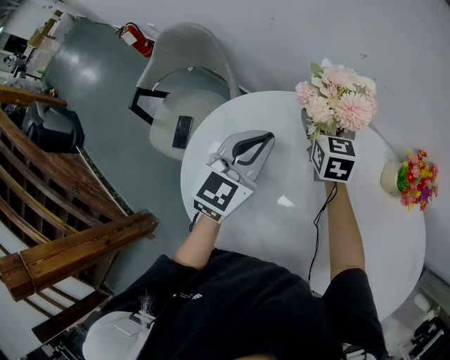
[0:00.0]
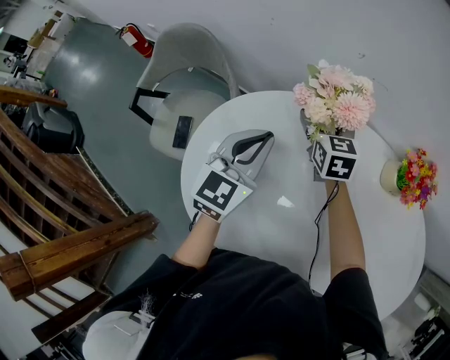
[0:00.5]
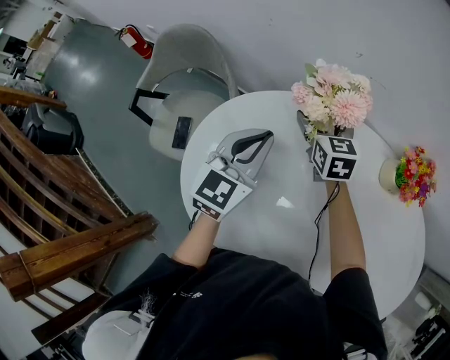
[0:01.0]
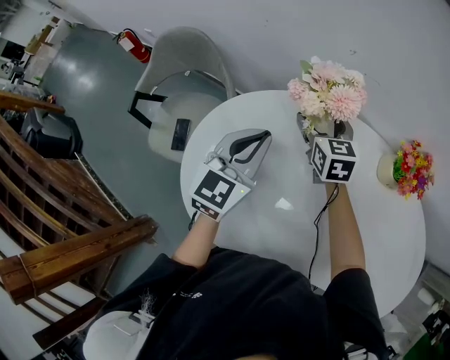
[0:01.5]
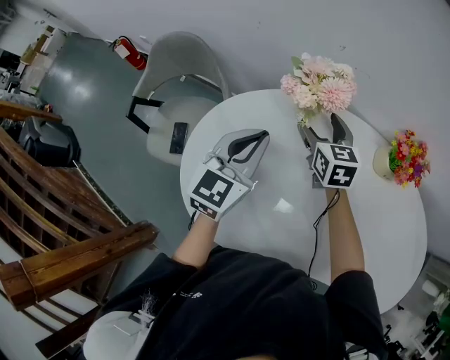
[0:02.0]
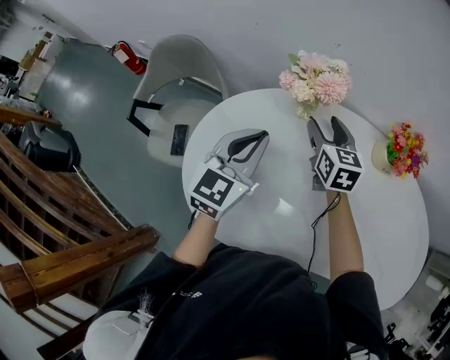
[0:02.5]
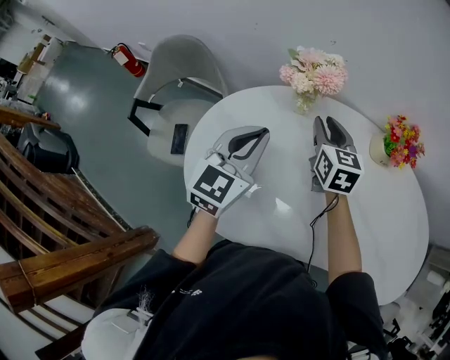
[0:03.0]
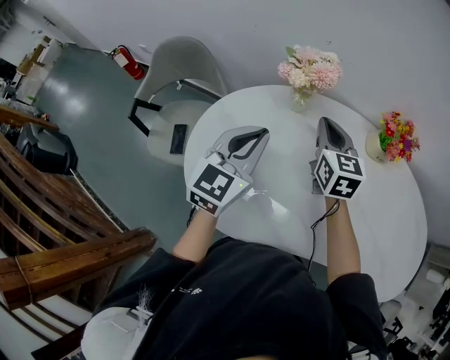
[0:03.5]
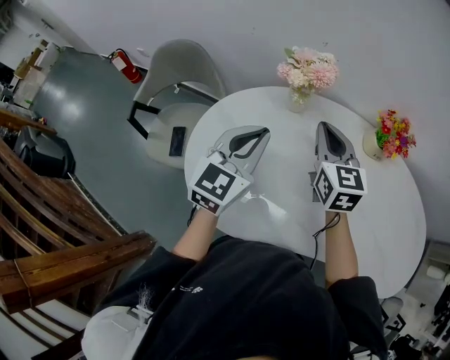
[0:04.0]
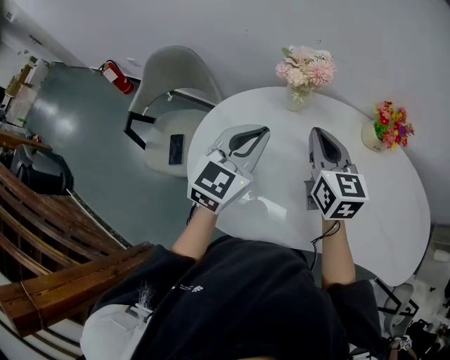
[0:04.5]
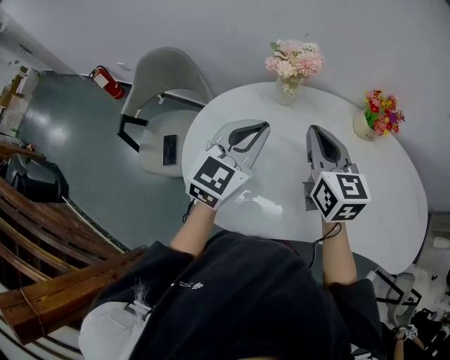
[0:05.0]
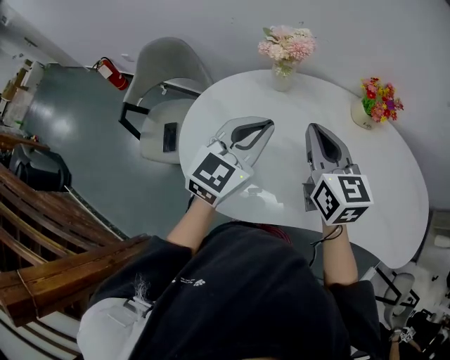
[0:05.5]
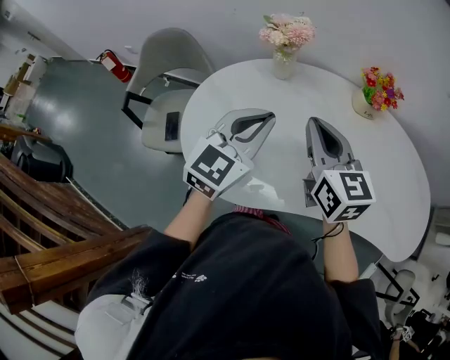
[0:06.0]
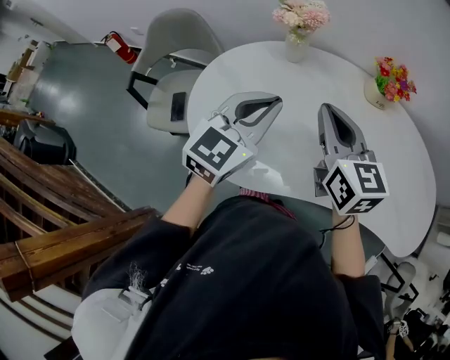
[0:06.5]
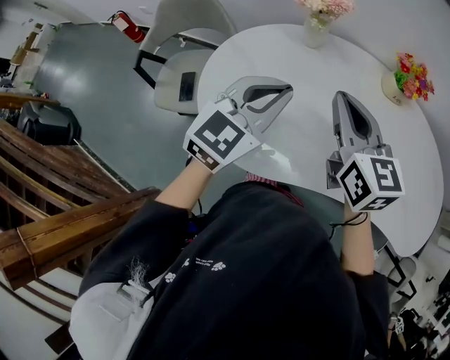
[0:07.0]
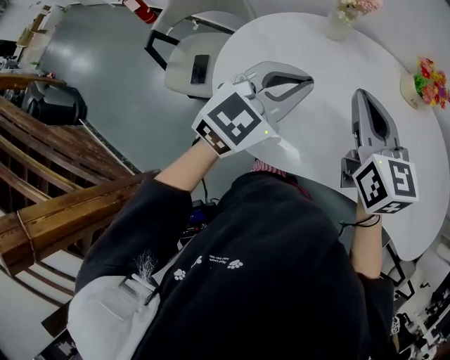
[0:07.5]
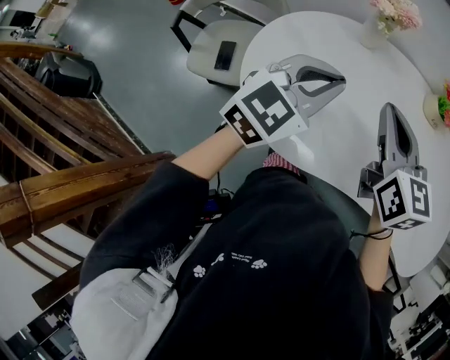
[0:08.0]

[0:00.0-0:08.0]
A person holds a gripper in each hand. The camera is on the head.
0:00.0 to 0:02.0: The right gripper changes place by approximately 5 cm.
0:02.0 to 0:04.0: The left gripper moves backward, roughly 5 cm; the right gripper travels backward and upward by roughly 15 cm, and closes up.
0:04.0 to 0:06.0: The left gripper heads backward and to the right, covering some 10 cm. The right gripper is displaced backward by roughly 15 cm.
0:06.0 to 0:08.0: The grippers stay close to where they were, moving slightly.

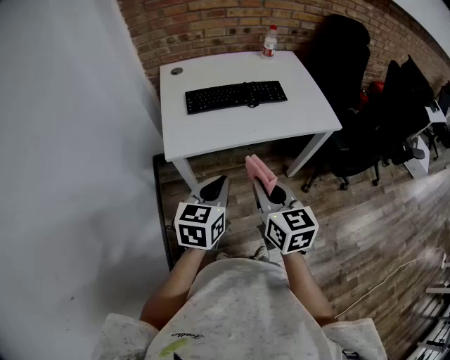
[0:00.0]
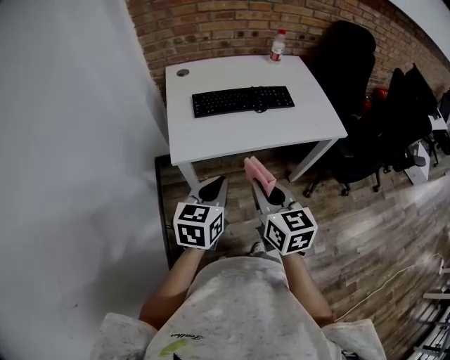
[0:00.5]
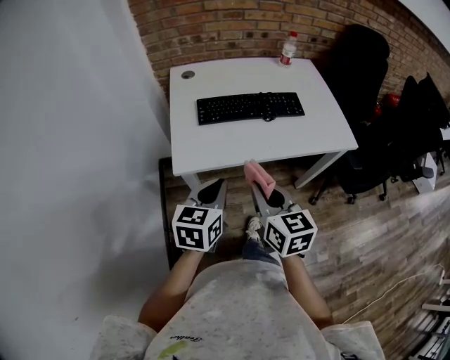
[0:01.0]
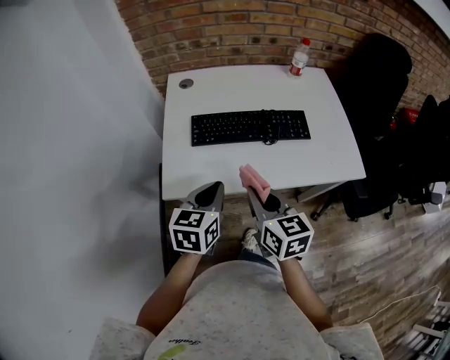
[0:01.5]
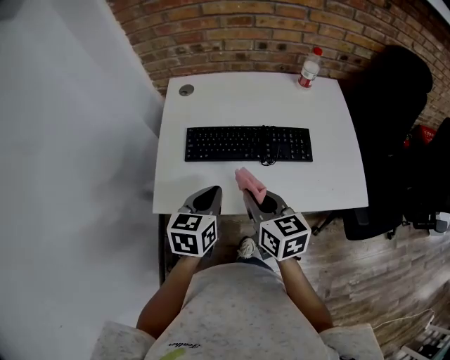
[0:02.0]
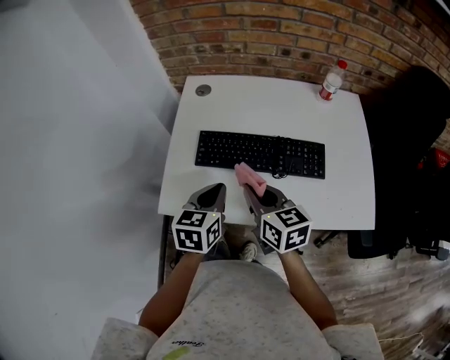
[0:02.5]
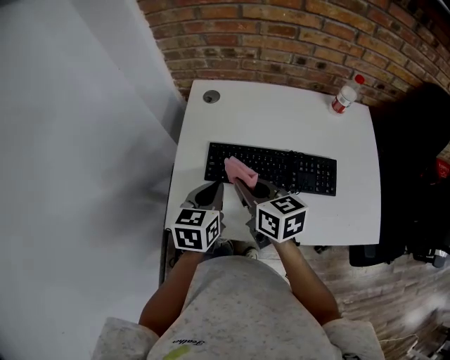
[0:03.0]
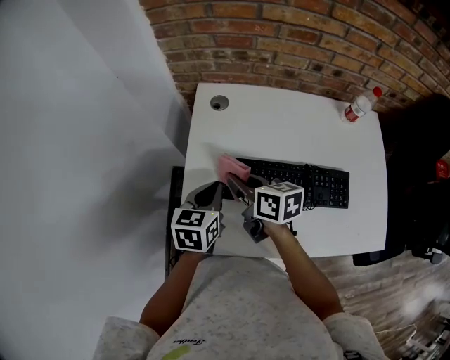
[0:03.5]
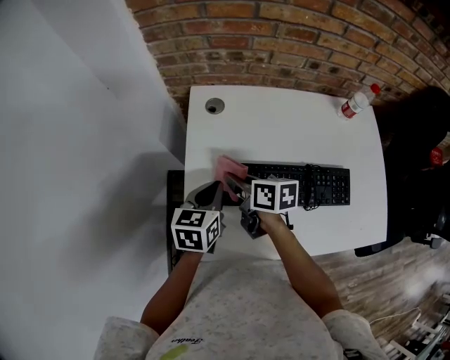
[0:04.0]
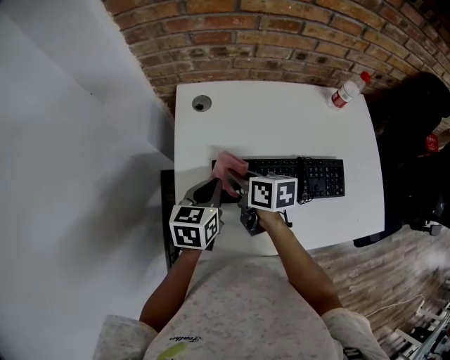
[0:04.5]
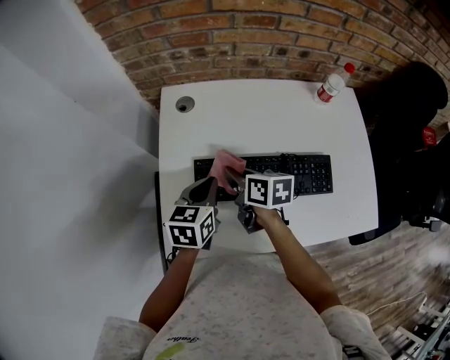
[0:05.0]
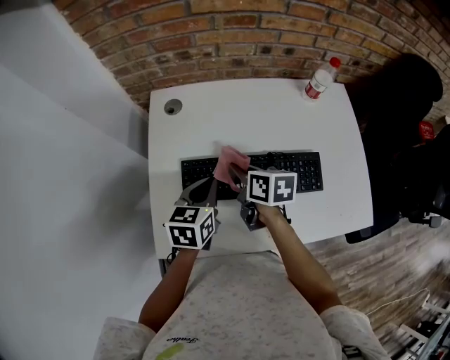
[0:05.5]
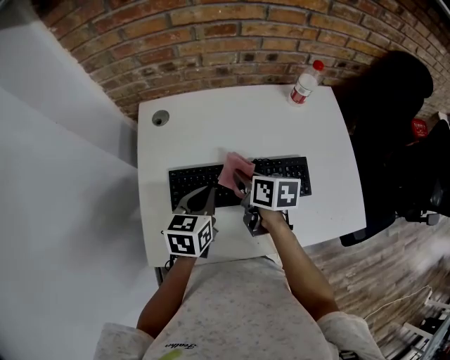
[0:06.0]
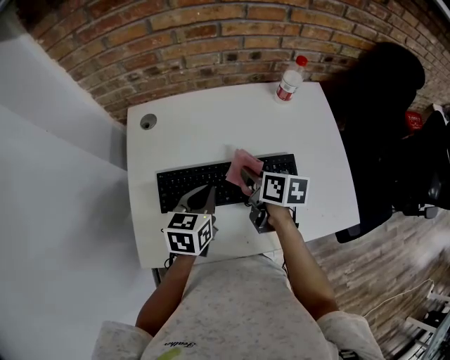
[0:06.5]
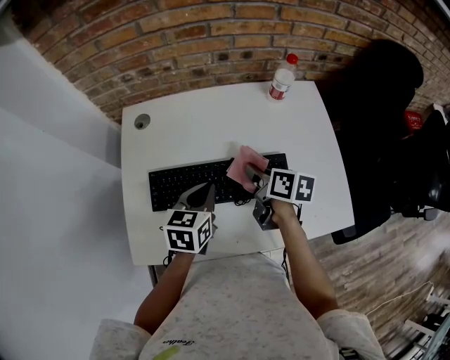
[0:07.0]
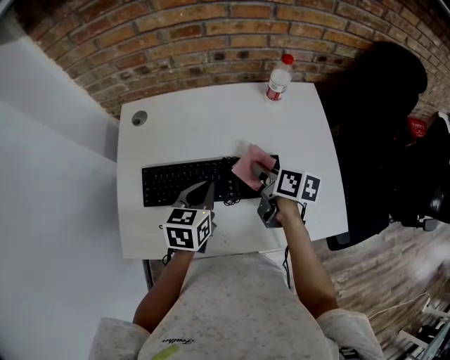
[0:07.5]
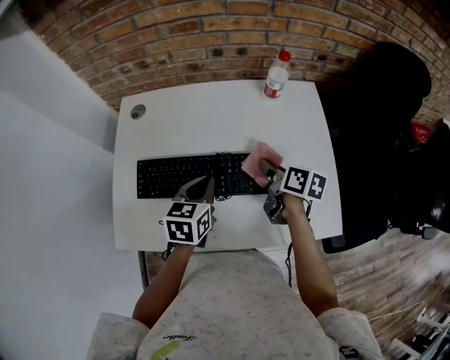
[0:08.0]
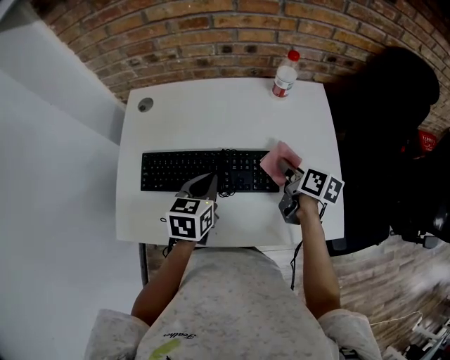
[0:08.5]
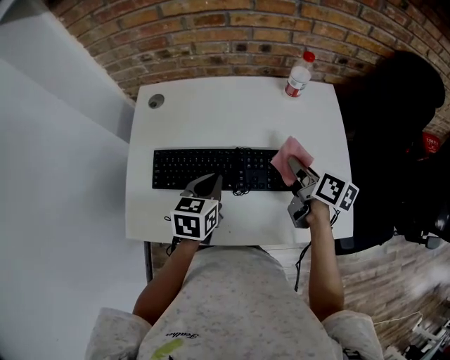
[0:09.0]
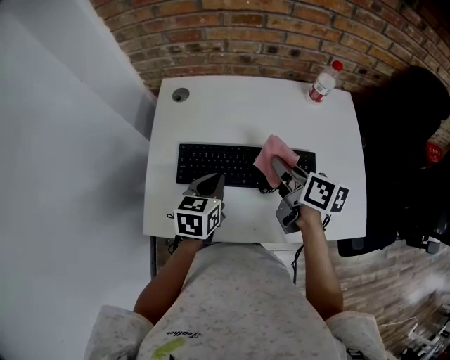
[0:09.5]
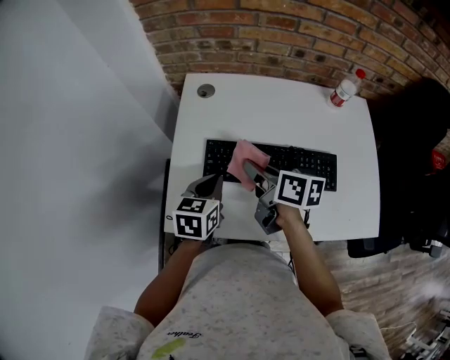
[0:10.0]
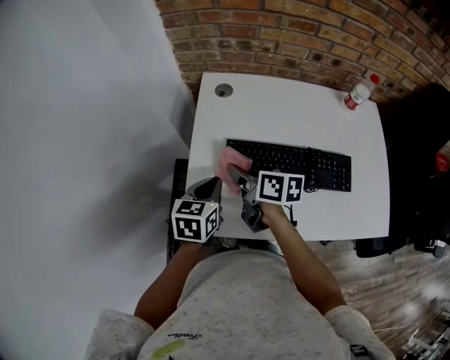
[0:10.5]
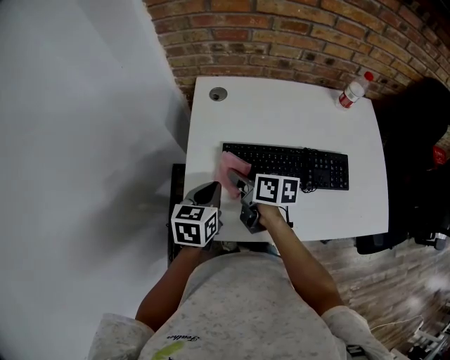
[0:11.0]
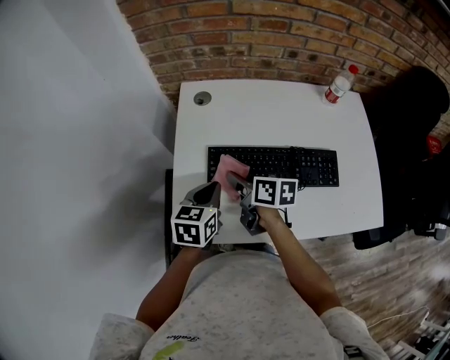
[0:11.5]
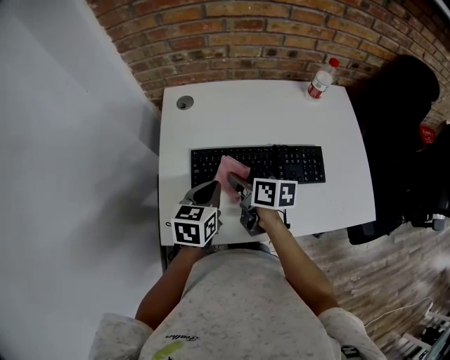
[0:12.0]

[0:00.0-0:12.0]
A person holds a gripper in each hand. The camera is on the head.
0:00.0 to 0:02.0: Both grippers move forward, about 30 cm.
0:02.0 to 0:04.0: The grippers both shift forward and to the left by some 30 cm. The right gripper swivels roughly 30 degrees.
0:04.0 to 0:06.0: Both grippers travel together to the right, approximately 15 cm.
0:06.0 to 0:08.0: The left gripper travels to the right by some 15 cm; the right gripper goes about 20 cm to the right.
0:08.0 to 0:10.0: The grippers both shift to the left by some 25 cm. The right gripper rotates some 20 degrees.
0:10.0 to 0:12.0: The left gripper reaches about 5 cm to the left, then returns, while the right gripper moves downward, some 5 cm, and reaches approximately 10 cm to the left, then returns.

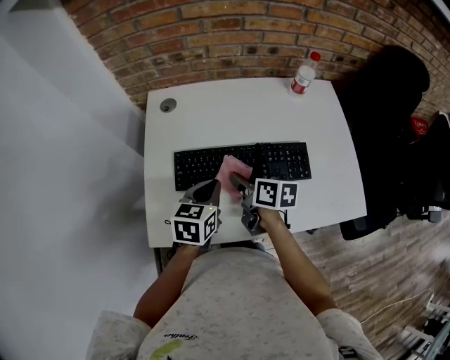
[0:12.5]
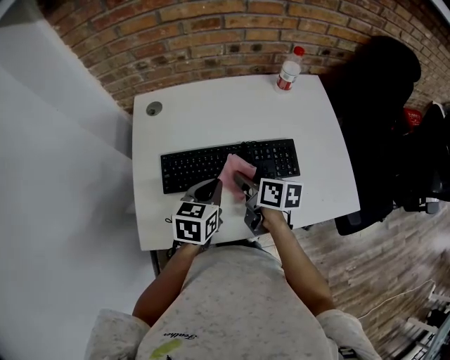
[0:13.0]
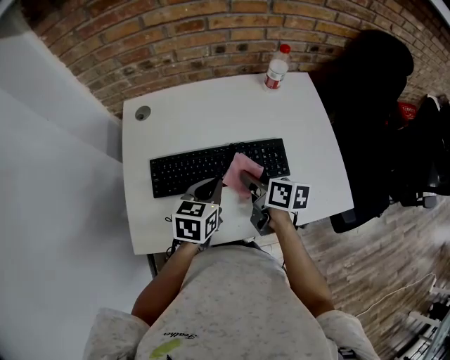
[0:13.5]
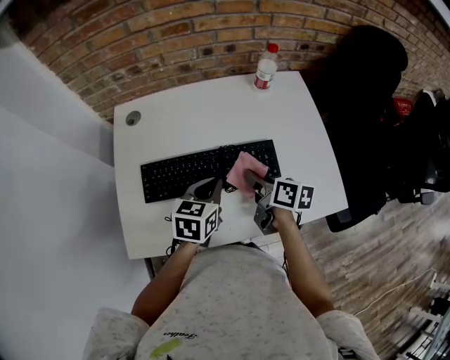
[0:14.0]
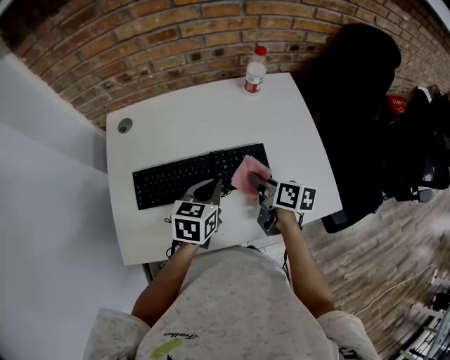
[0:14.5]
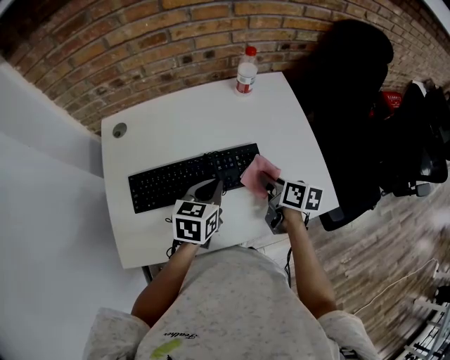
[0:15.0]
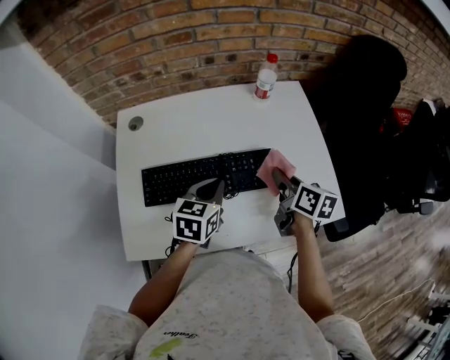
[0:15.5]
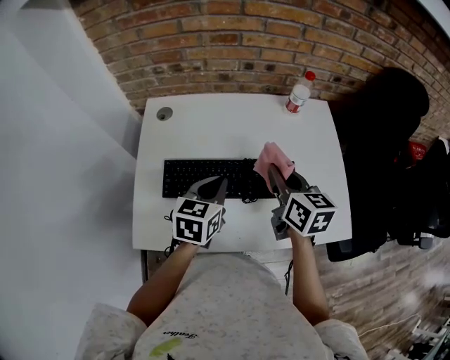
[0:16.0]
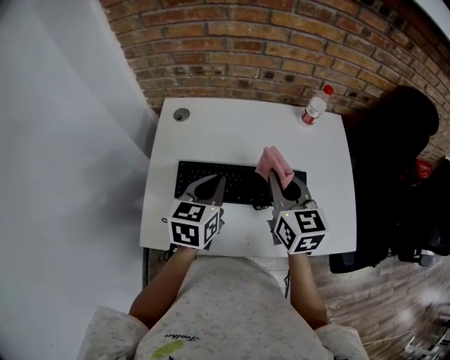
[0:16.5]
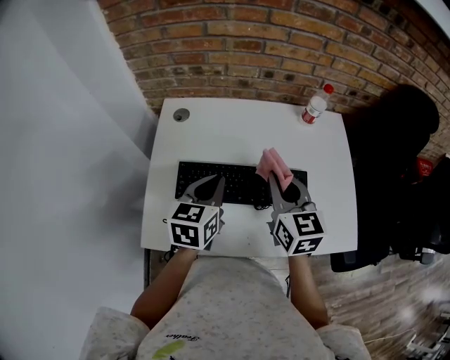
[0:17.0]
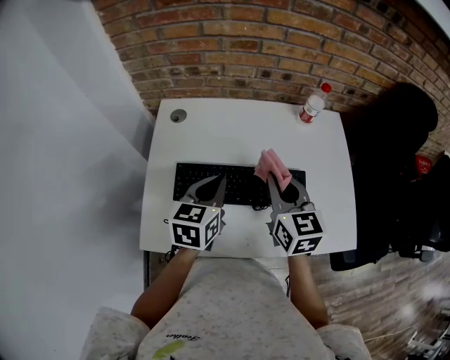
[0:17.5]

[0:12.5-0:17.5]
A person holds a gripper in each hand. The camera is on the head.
0:12.5 to 0:15.0: The right gripper goes approximately 25 cm to the right. Meanwhile the left gripper heads to the right, covering about 15 cm.
0:15.0 to 0:17.5: Both grippers move to the left and upward, approximately 20 cm. The right gripper twists roughly 50 degrees counterclockwise, seen from behind.

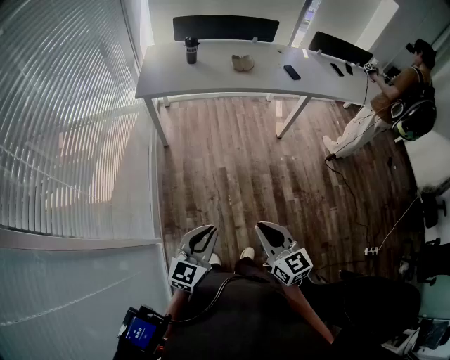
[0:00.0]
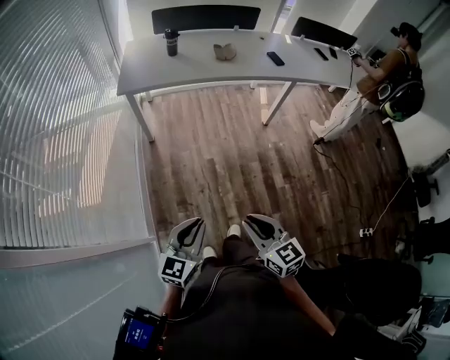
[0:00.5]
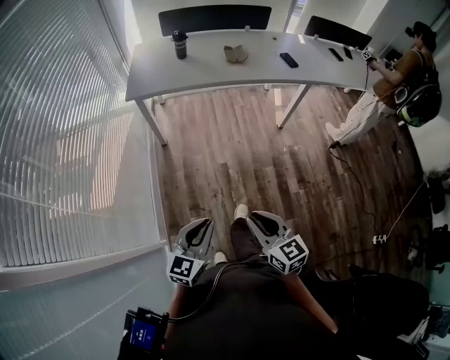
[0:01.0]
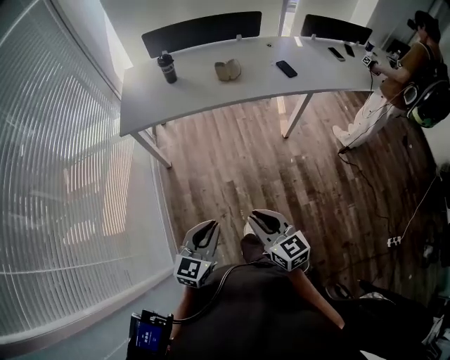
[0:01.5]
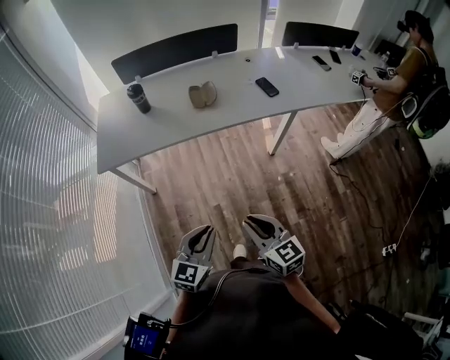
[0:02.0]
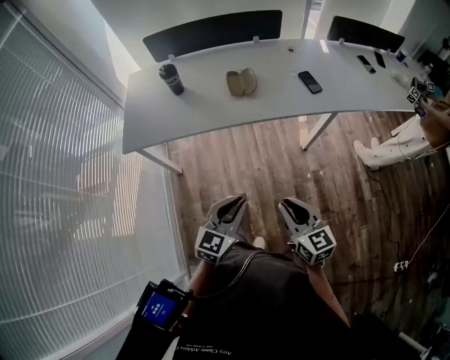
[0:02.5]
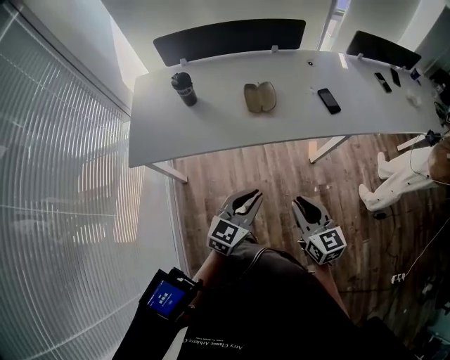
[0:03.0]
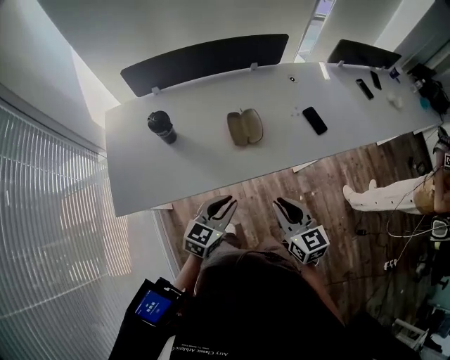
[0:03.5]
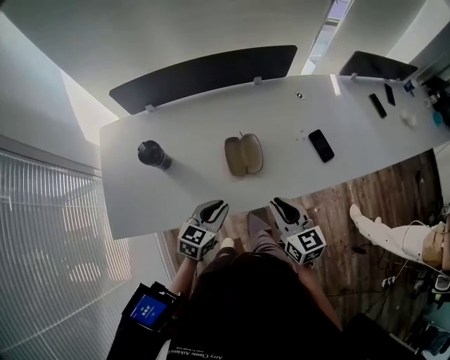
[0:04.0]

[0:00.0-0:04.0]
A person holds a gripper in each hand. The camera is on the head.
0:00.0 to 0:02.0: The grippers both shift forward by approximately 35 cm.
0:02.0 to 0:04.0: Both grippers are carried forward, about 50 cm.
